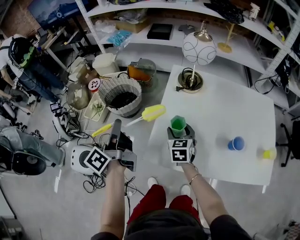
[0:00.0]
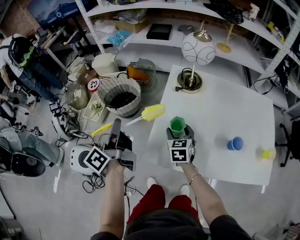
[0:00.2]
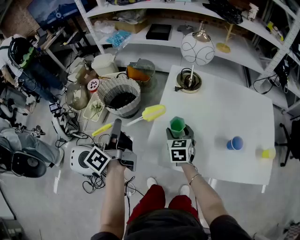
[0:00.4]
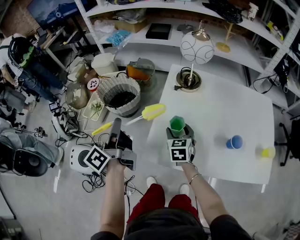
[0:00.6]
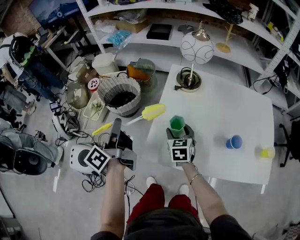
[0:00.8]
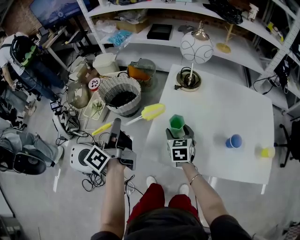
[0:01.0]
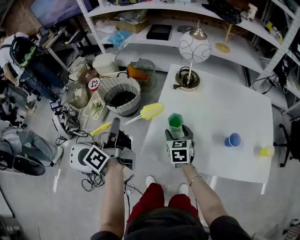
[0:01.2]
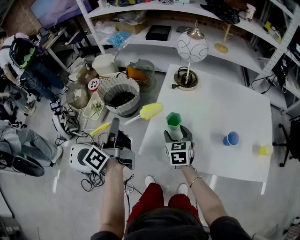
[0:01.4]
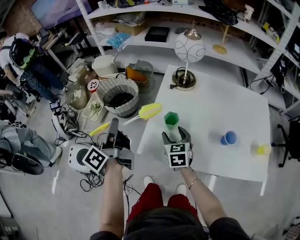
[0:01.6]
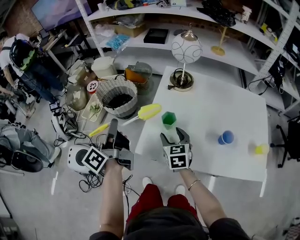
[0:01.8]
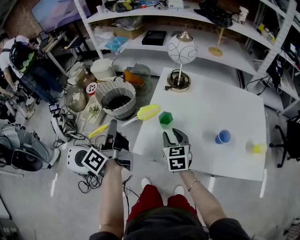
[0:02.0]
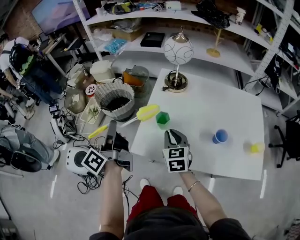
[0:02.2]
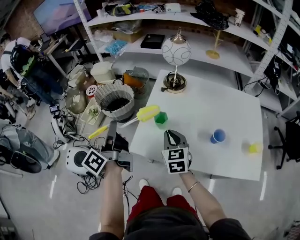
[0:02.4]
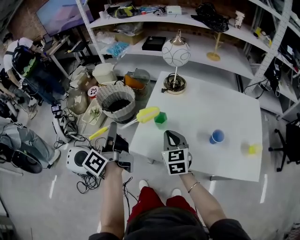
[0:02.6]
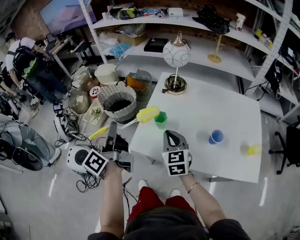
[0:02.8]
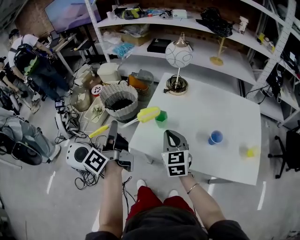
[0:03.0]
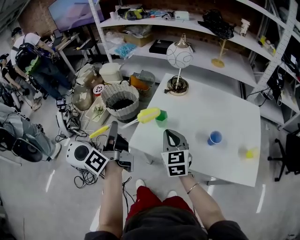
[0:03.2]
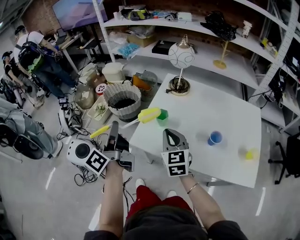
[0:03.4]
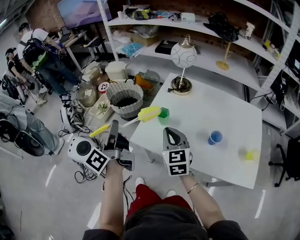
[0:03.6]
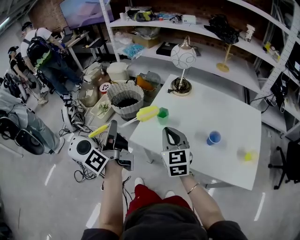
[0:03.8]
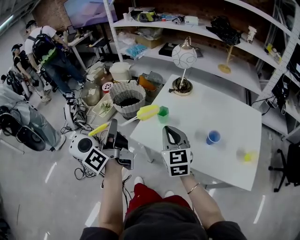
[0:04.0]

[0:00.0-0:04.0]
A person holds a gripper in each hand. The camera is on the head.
0:00.0 to 0:01.4: The grippers move only a little.
0:01.4 to 0:02.6: The right gripper goes approximately 10 cm upward and backward, and closes its fingers, while the left gripper heads backward, covering about 5 cm.
0:02.6 to 0:04.0: The right gripper travels upward and backward by roughly 10 cm, while the left gripper travels backward by roughly 10 cm.

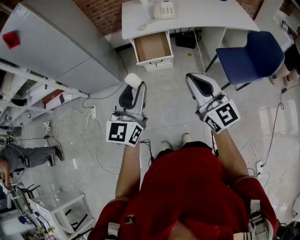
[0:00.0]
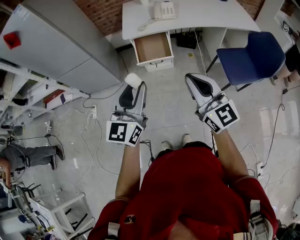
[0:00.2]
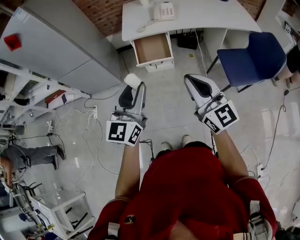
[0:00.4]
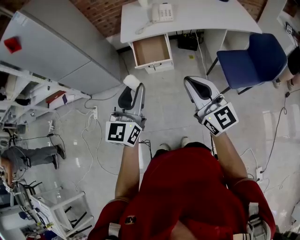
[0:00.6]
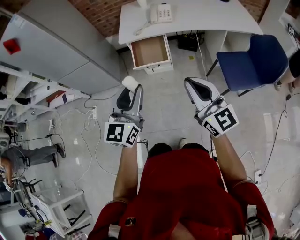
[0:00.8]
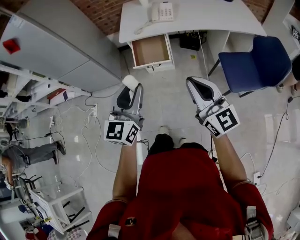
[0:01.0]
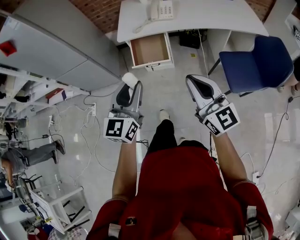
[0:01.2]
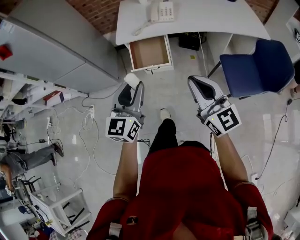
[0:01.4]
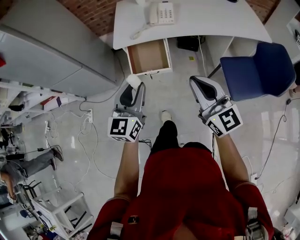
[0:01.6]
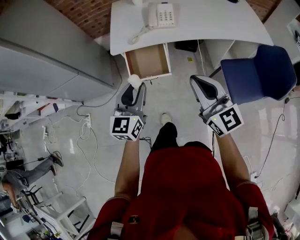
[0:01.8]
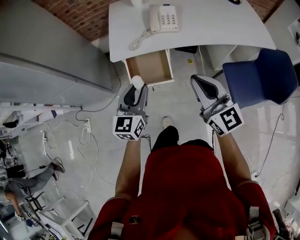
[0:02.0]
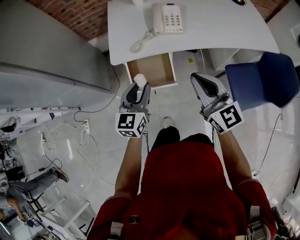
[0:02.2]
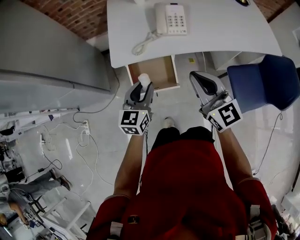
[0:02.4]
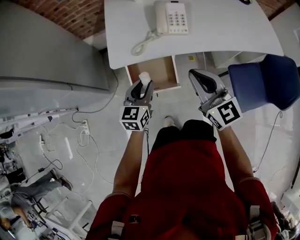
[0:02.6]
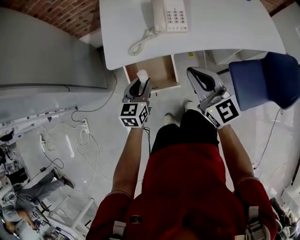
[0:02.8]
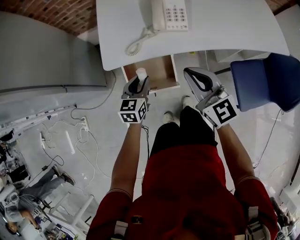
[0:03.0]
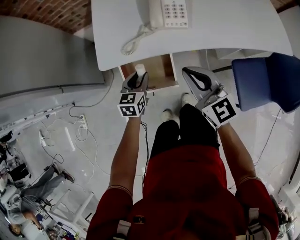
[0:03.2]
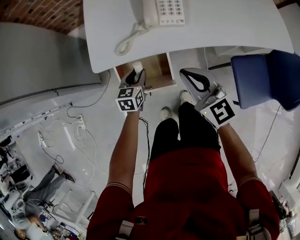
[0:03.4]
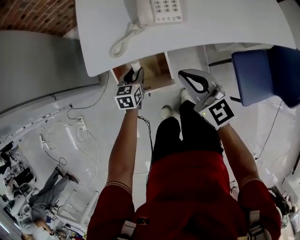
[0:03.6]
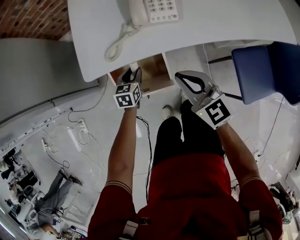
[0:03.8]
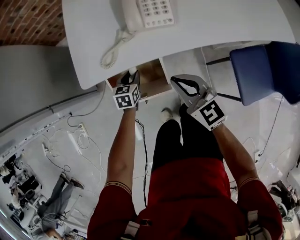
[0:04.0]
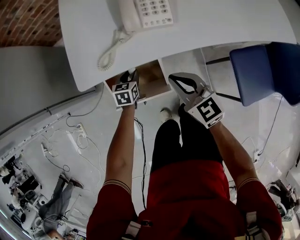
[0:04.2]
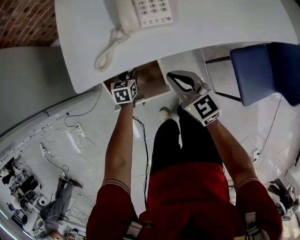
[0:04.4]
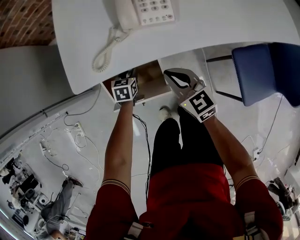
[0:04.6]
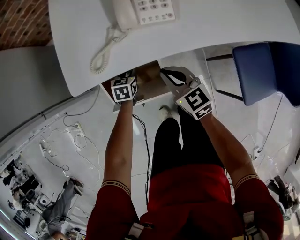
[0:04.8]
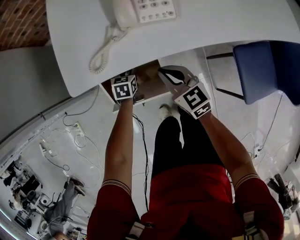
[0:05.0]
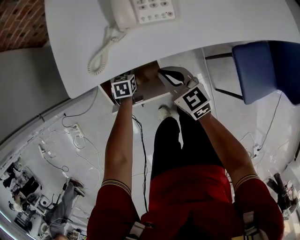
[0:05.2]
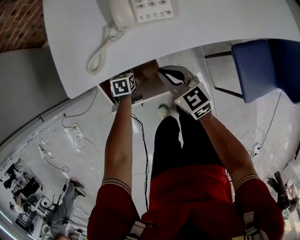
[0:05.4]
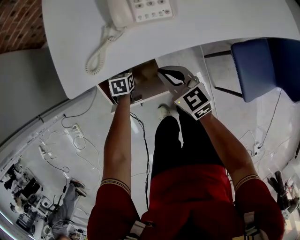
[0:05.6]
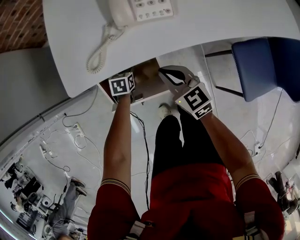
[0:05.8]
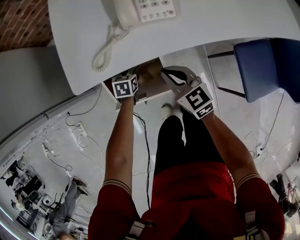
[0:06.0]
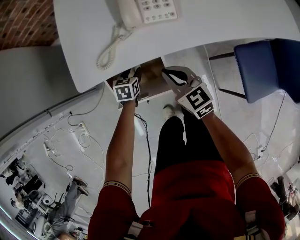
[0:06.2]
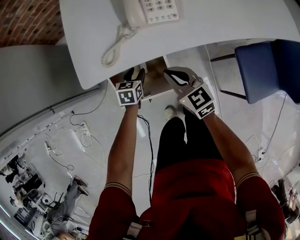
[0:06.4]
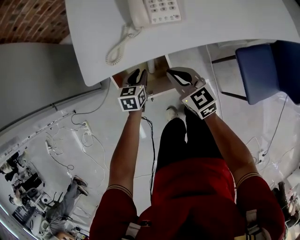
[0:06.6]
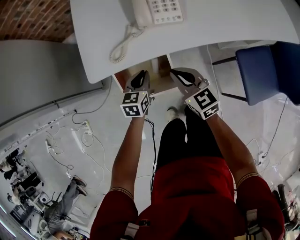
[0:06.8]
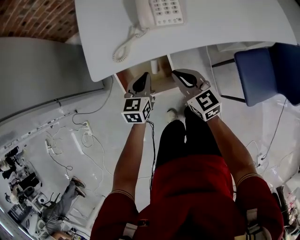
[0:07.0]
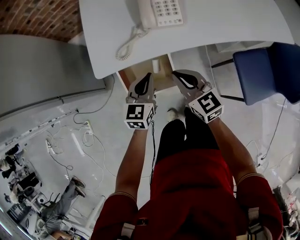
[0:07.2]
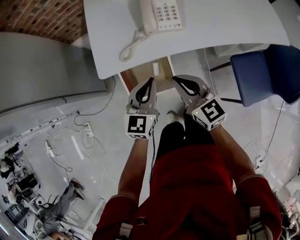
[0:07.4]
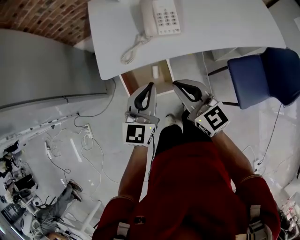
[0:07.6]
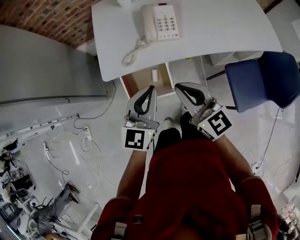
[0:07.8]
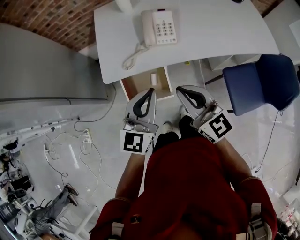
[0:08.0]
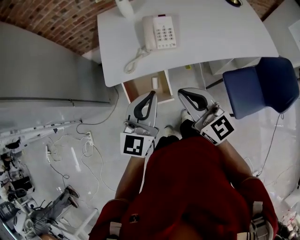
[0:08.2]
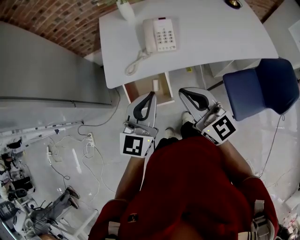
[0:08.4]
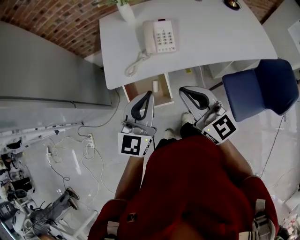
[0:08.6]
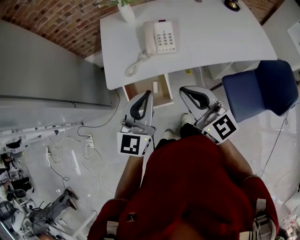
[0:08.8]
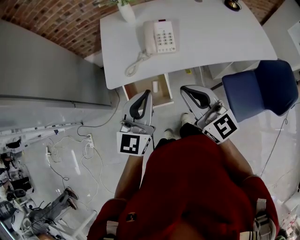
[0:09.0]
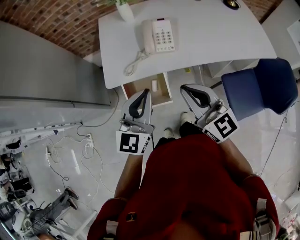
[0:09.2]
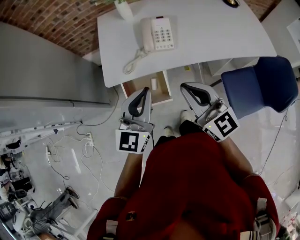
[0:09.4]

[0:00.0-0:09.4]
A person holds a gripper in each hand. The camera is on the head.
0:00.0 to 0:01.6: The left gripper travels forward and downward by roughly 20 cm; the right gripper travels forward and to the right by approximately 20 cm.
0:01.6 to 0:03.2: The two grippers go about 40 cm forward and downward. The left gripper swivels about 30 degrees.
0:03.2 to 0:04.8: The left gripper travels downward and forward by about 25 cm, and swivels about 20 degrees. The right gripper travels downward by roughly 20 cm.
0:04.8 to 0:06.2: The grippers move only a little.
0:06.2 to 0:07.8: The right gripper is displaced upward by roughly 25 cm, while the left gripper travels upward by approximately 40 cm, angles its fingers upward, by roughly 50 degrees, and closes up.
0:07.8 to 0:09.4: Both grippers move upward, approximately 5 cm.

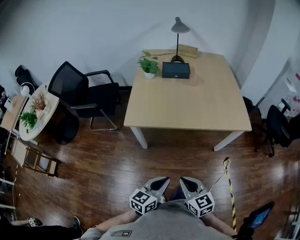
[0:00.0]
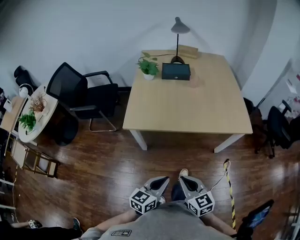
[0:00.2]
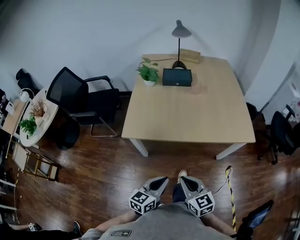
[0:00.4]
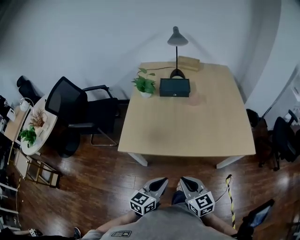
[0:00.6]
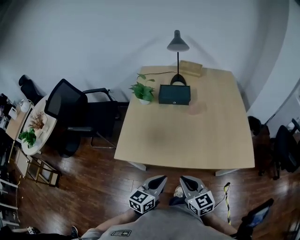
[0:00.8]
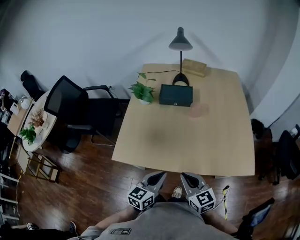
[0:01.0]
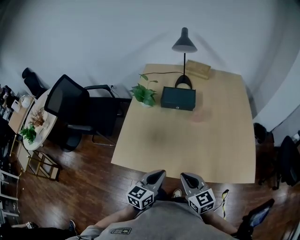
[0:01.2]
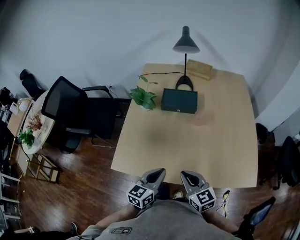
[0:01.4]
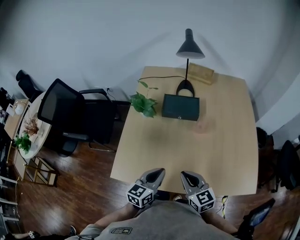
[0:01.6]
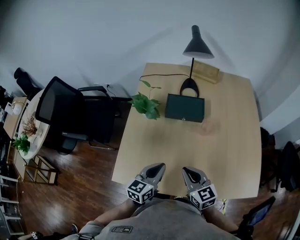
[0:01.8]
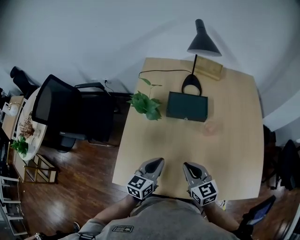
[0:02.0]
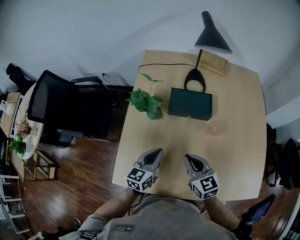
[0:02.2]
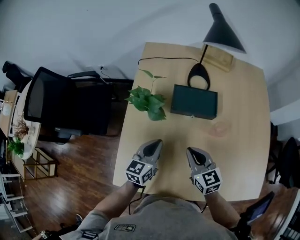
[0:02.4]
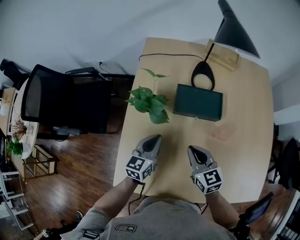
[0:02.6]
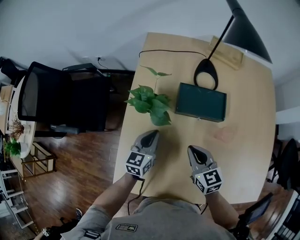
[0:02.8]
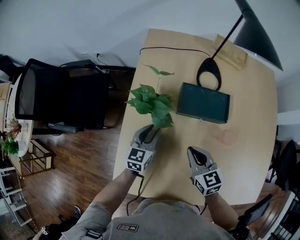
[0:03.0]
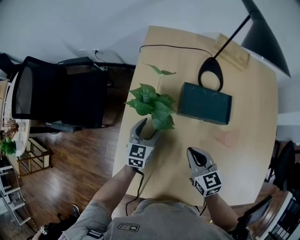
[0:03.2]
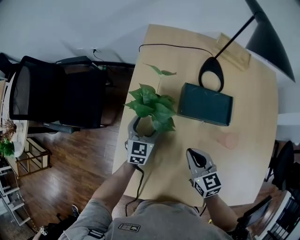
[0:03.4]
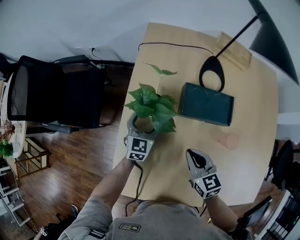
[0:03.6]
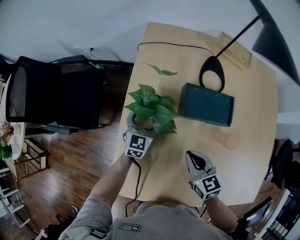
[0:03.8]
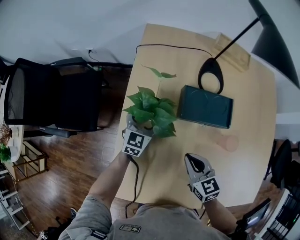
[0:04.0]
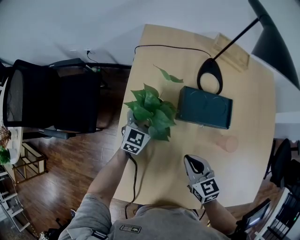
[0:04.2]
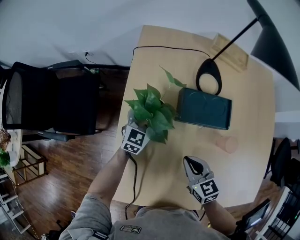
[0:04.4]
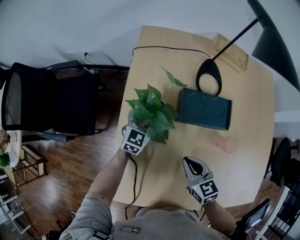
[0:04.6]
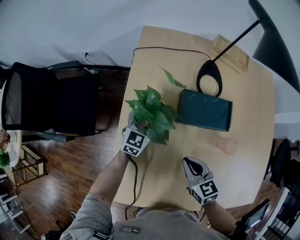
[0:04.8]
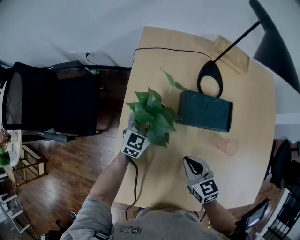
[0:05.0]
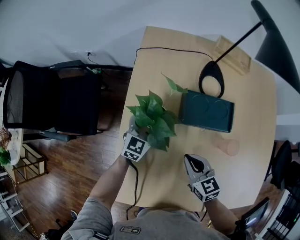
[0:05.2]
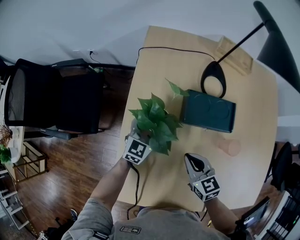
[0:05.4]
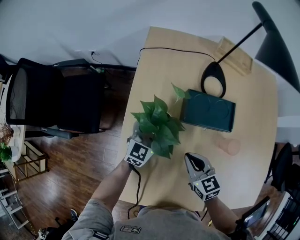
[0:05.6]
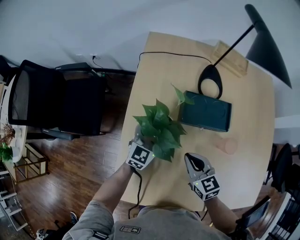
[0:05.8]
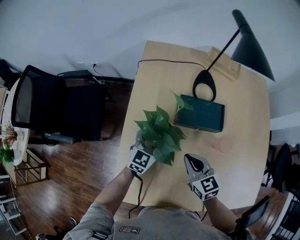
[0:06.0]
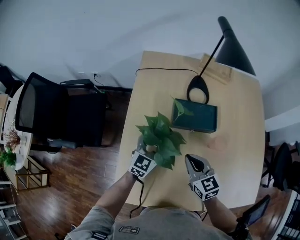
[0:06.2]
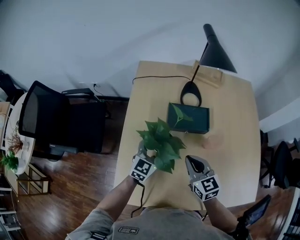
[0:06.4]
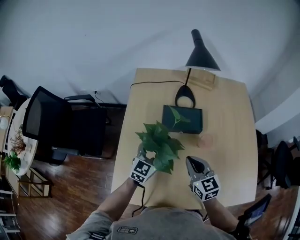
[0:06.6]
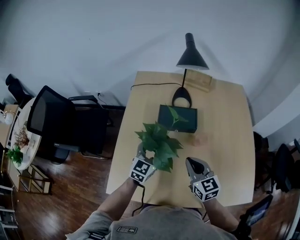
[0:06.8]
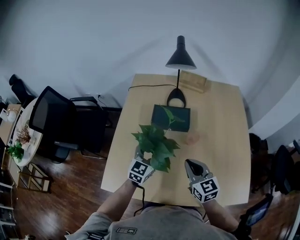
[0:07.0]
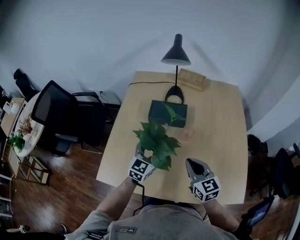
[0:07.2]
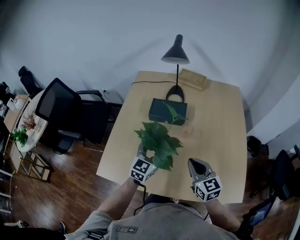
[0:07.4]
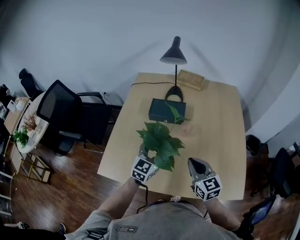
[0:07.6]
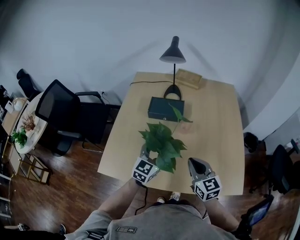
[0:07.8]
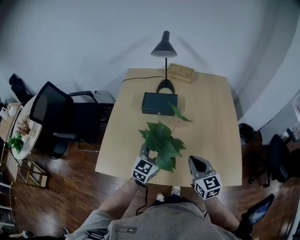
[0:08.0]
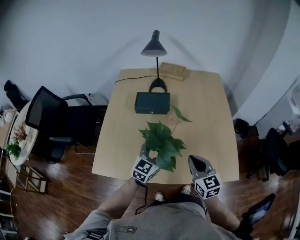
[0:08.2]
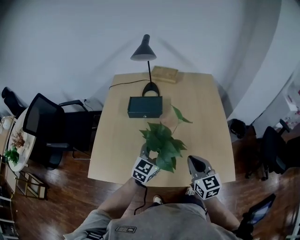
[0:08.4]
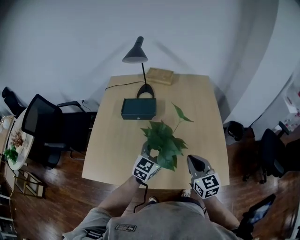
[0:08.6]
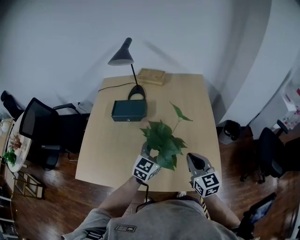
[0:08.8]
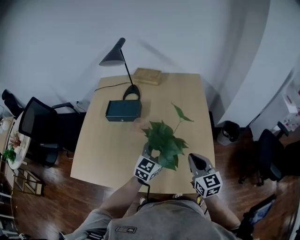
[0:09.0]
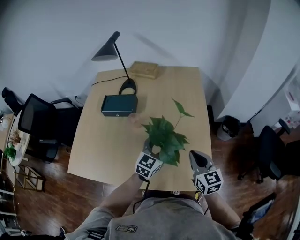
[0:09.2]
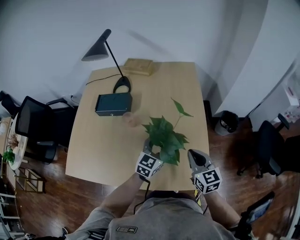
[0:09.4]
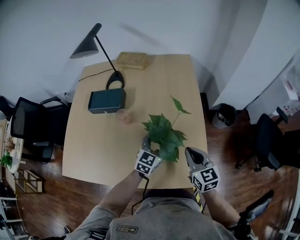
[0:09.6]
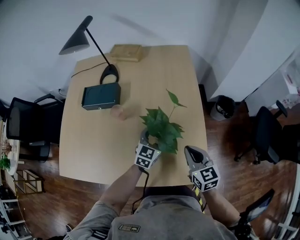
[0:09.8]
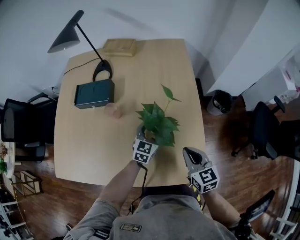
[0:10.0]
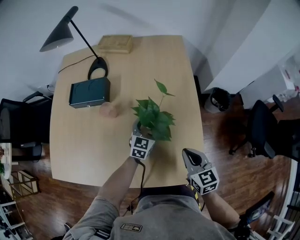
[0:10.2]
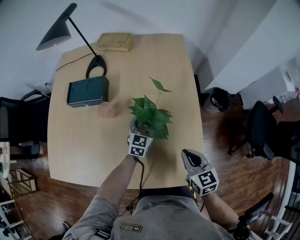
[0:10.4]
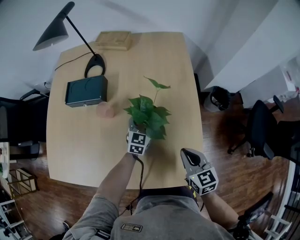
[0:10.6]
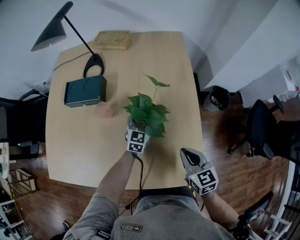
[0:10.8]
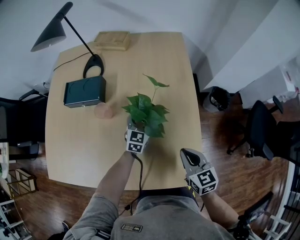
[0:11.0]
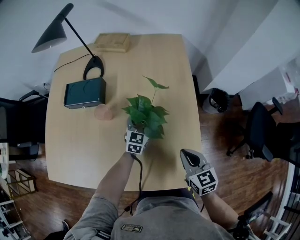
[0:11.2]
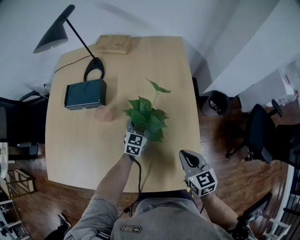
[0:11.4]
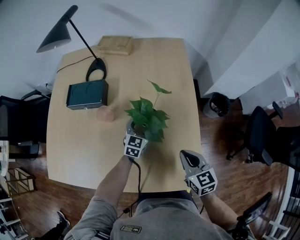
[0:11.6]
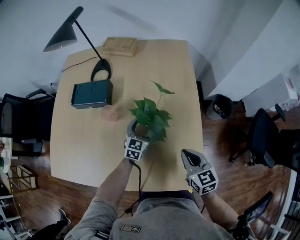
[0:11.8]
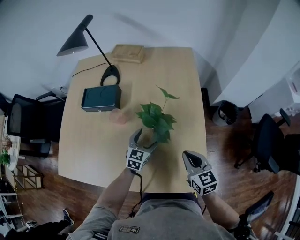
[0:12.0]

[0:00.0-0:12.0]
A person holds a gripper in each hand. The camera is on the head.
0:00.0 to 0:01.6: The two grippers travel together, forward, about 40 cm.
0:01.6 to 0:03.0: Both grippers travel together forward, roughly 25 cm.
0:03.0 to 0:04.4: The left gripper shifts roughly 10 cm forward, swivels some 20 degrees, and opens up.
0:04.4 to 0:06.0: The left gripper heads backward and upward, covering approximately 10 cm.
0:06.0 to 0:07.6: The right gripper heads to the right, backward and upward, covering about 30 cm, while the left gripper shifts about 30 cm backward, to the right and upward.
0:07.6 to 0:09.0: Both grippers move to the right, some 25 cm.
0:09.0 to 0:10.4: The right gripper goes some 10 cm downward and to the right; the left gripper moves downward and forward, approximately 20 cm.
0:10.4 to 0:12.0: The left gripper shifts by approximately 5 cm.
